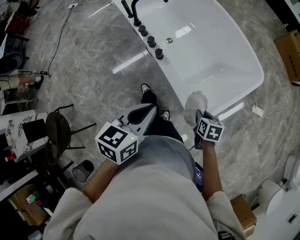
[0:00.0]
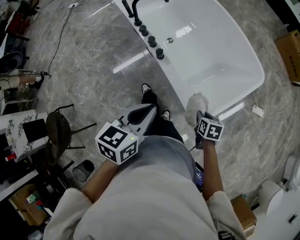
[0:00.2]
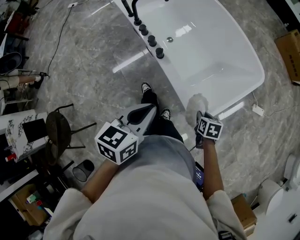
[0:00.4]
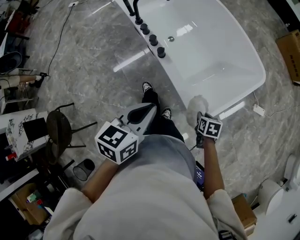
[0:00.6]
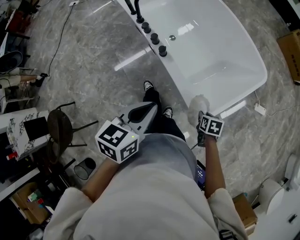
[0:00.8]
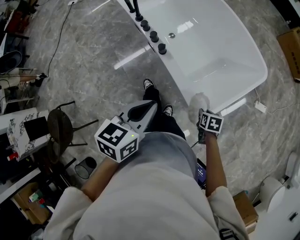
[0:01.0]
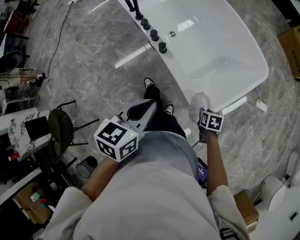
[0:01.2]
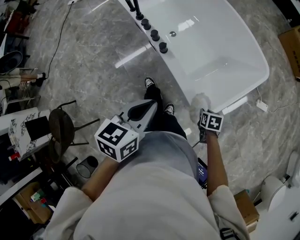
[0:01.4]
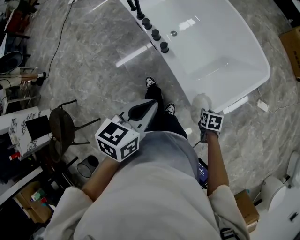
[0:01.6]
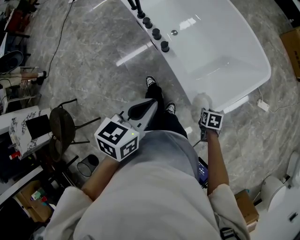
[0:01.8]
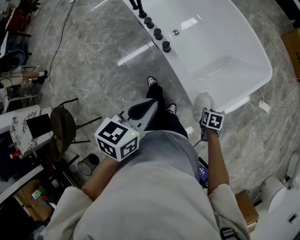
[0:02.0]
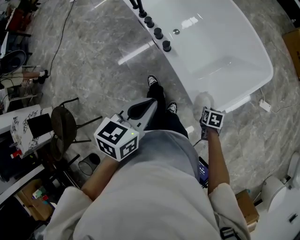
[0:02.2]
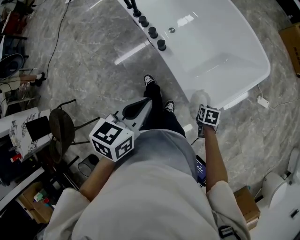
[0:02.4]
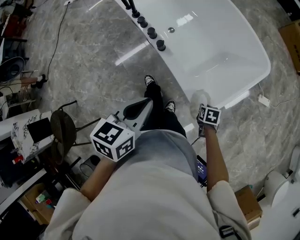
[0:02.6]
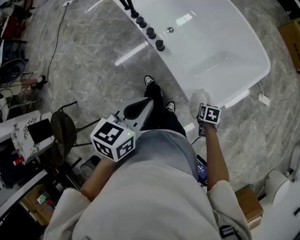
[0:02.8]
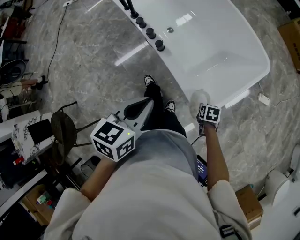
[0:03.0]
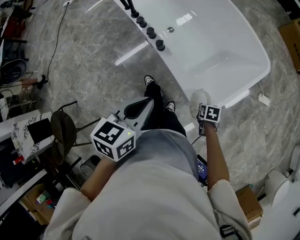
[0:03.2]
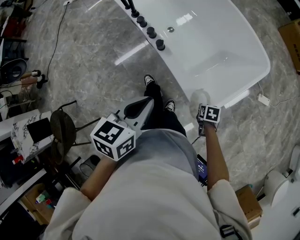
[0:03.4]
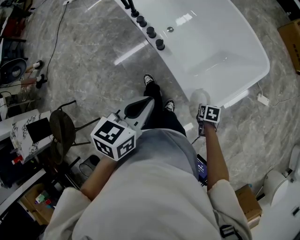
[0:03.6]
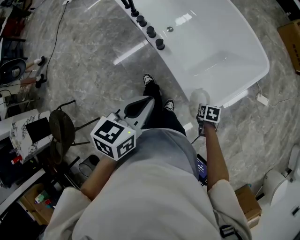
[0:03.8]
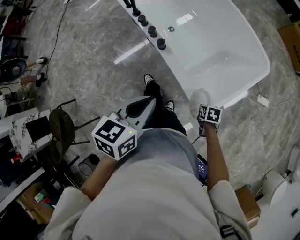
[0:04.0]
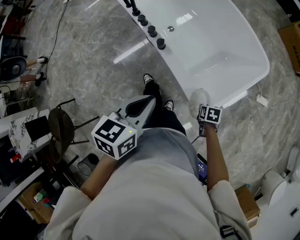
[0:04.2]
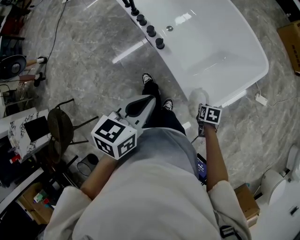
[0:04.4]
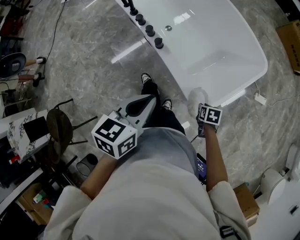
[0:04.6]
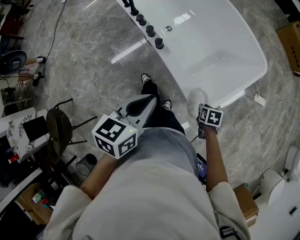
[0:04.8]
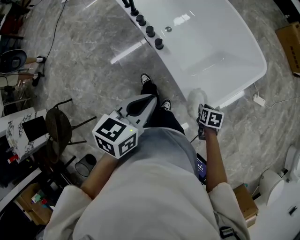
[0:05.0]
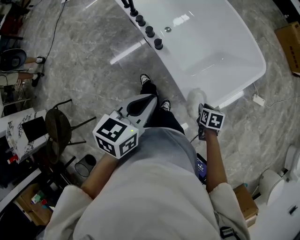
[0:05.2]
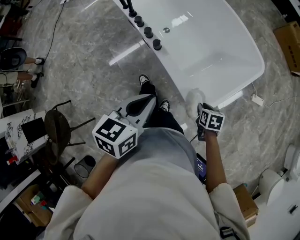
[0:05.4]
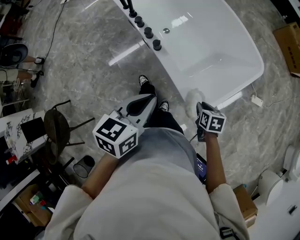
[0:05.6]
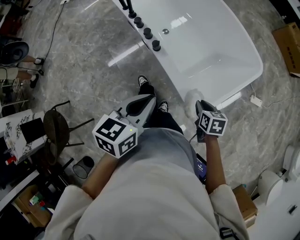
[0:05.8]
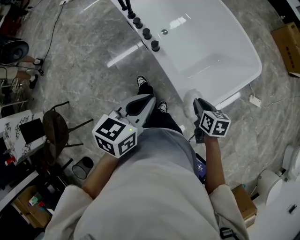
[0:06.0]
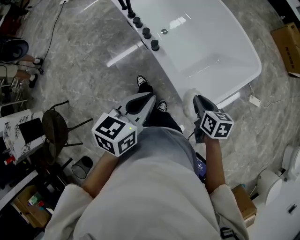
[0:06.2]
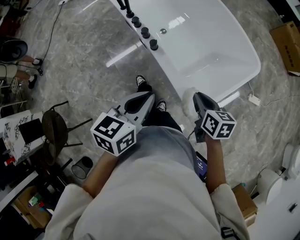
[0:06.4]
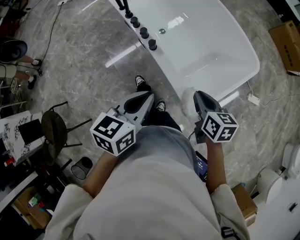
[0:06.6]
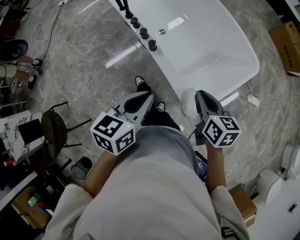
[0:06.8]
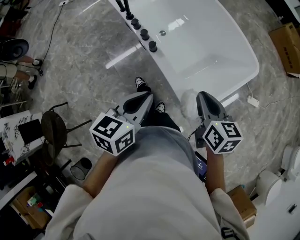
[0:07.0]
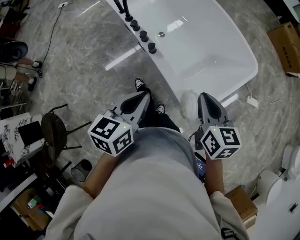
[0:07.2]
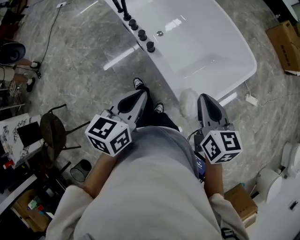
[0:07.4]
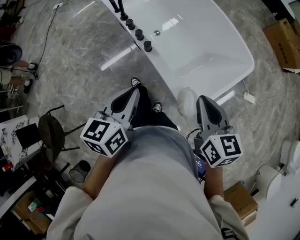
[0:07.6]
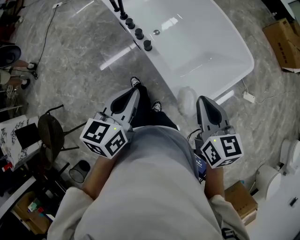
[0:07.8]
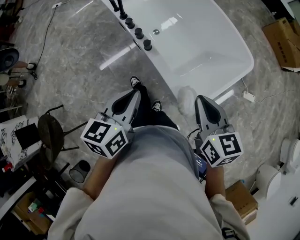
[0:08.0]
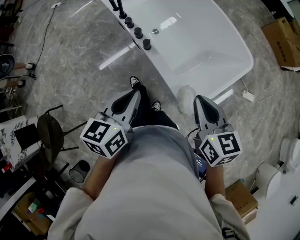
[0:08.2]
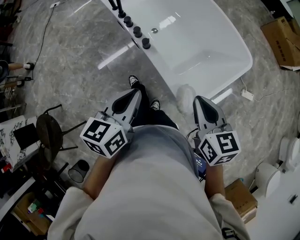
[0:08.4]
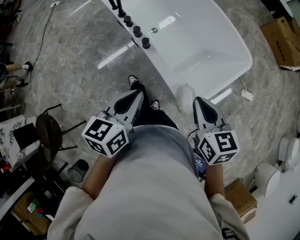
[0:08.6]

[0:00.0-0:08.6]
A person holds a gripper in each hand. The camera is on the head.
0:00.0 to 0:01.4: The right gripper moves downward, some 10 cm.
0:01.4 to 0:04.4: The grippers move only a little.
0:04.4 to 0:05.8: The right gripper goes some 10 cm upward.
0:05.8 to 0:07.2: The right gripper is displaced upward by roughly 20 cm, and changes its angle by about 30 degrees.
0:07.2 to 0:08.6: The grippers move only a little.

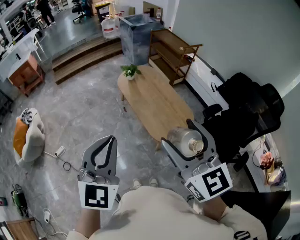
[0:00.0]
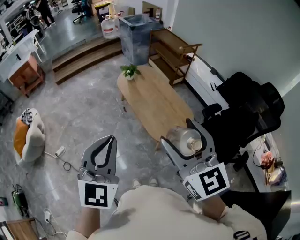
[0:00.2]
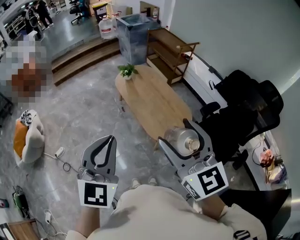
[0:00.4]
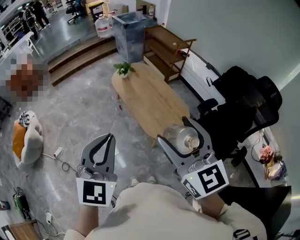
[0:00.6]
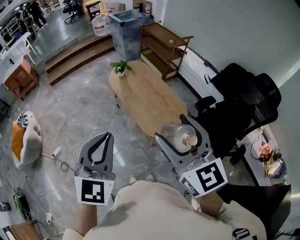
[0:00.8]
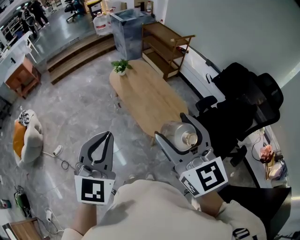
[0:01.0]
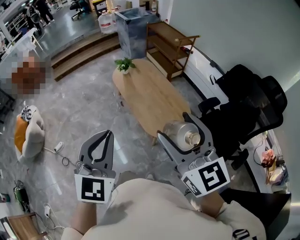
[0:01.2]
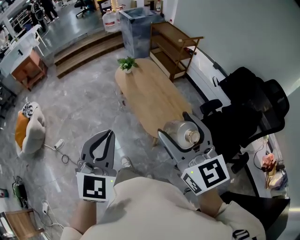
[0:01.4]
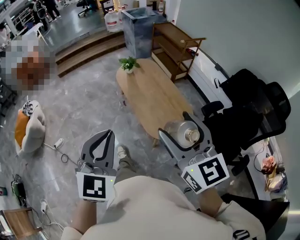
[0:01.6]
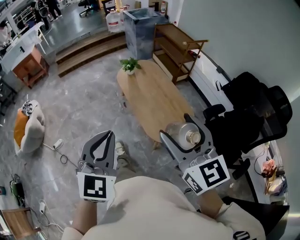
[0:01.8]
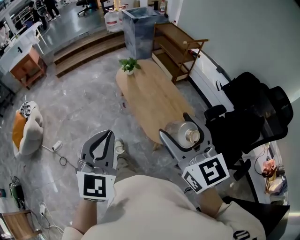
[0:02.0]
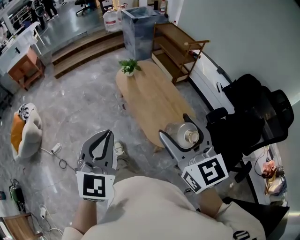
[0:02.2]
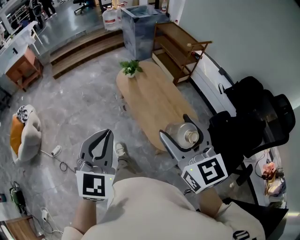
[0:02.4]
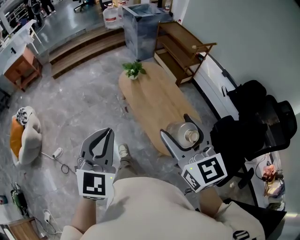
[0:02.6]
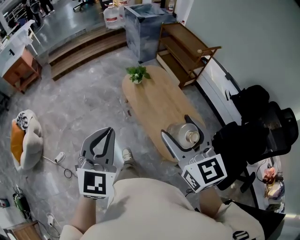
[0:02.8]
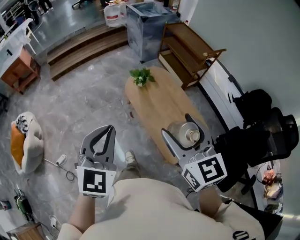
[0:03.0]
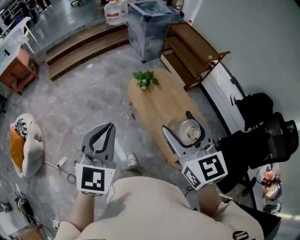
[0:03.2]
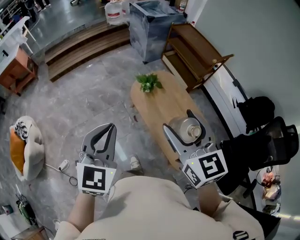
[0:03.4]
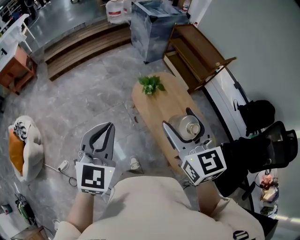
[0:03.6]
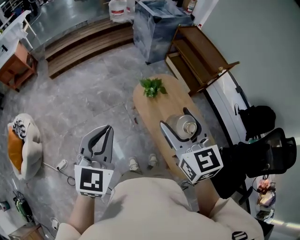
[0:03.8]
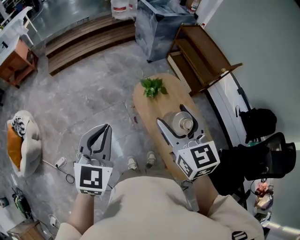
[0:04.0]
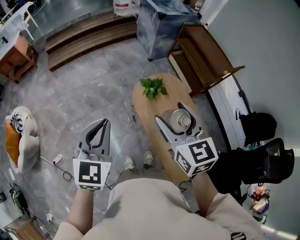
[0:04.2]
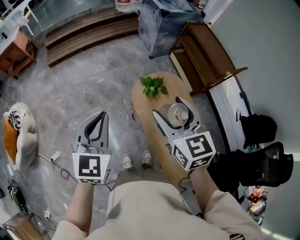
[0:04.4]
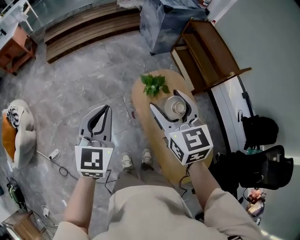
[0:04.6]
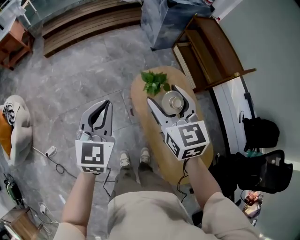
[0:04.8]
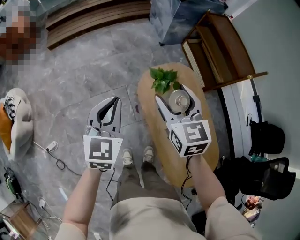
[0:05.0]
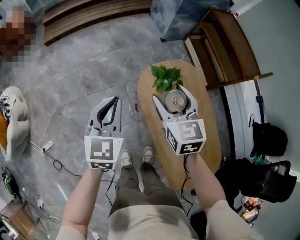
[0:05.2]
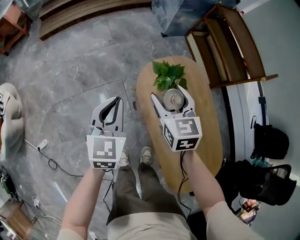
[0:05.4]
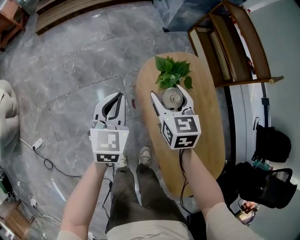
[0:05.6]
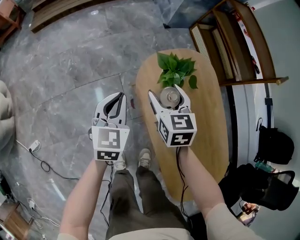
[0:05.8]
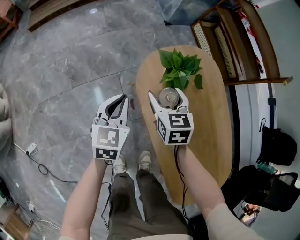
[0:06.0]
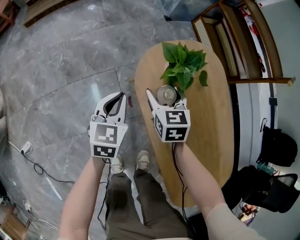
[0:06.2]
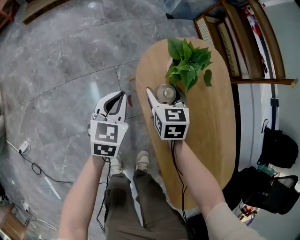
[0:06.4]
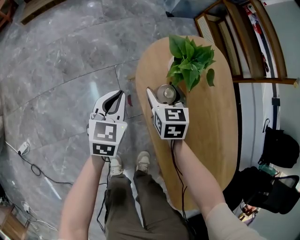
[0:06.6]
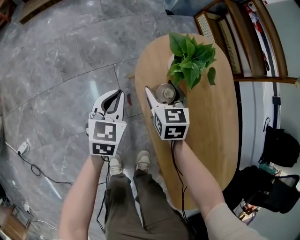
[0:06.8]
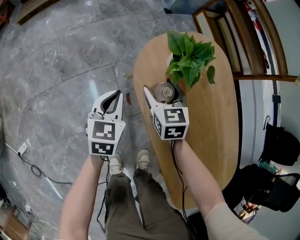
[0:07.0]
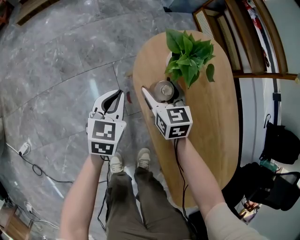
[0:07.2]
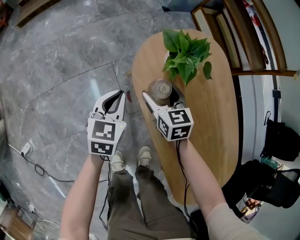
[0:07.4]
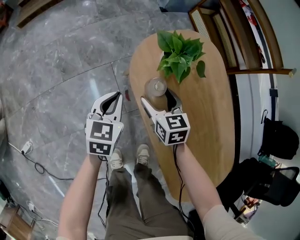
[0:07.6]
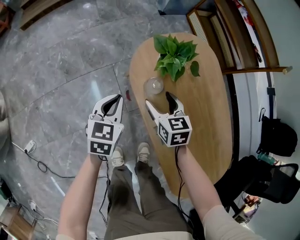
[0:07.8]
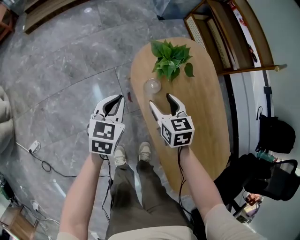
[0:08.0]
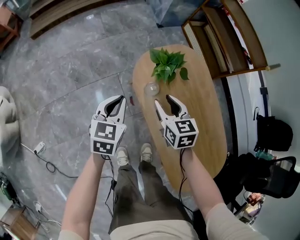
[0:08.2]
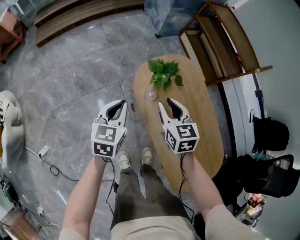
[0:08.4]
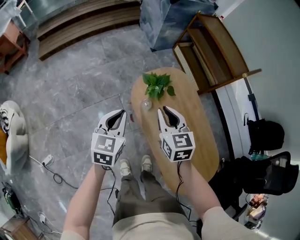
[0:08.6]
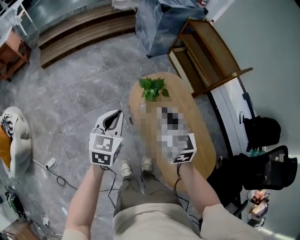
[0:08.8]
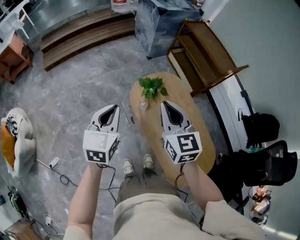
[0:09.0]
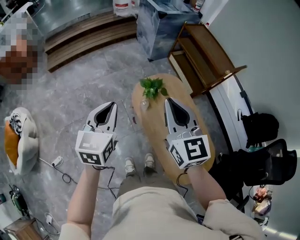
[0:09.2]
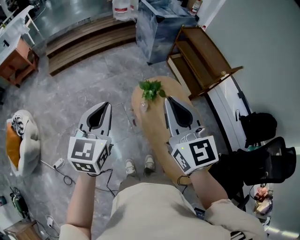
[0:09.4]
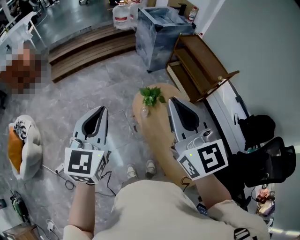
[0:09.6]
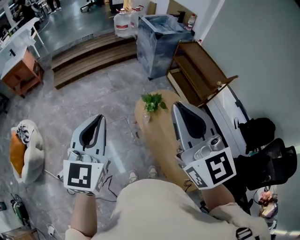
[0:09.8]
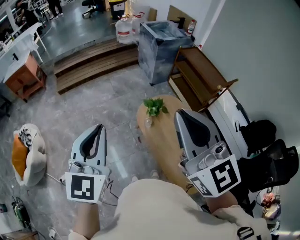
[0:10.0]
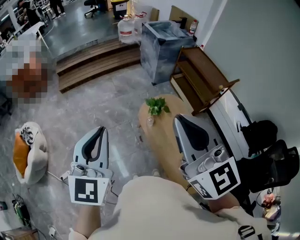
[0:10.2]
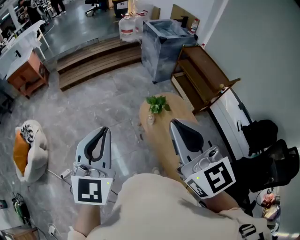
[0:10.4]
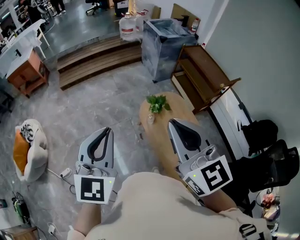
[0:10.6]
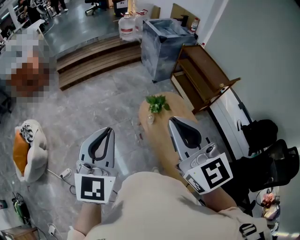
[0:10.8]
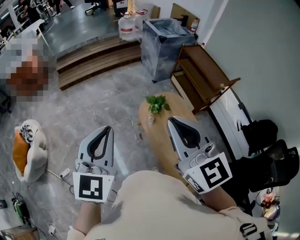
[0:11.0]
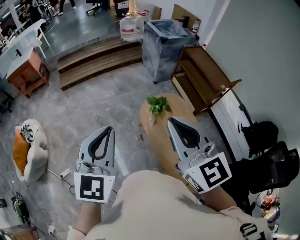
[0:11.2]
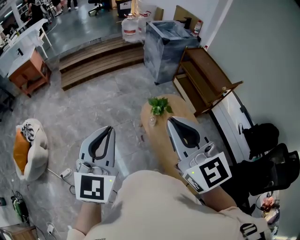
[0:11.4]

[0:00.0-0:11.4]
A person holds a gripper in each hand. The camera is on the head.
0:00.0 to 0:01.4: Both grippers move to the right, approximately 10 cm.
0:01.4 to 0:02.8: Both grippers travel together forward and to the left, approximately 30 cm.
0:02.8 to 0:04.2: The right gripper is displaced forward by roughly 35 cm; the left gripper is displaced forward and to the left by some 35 cm.
0:04.2 to 0:05.6: The two grippers go roughly 50 cm downward and forward.
0:05.6 to 0:07.2: Both grippers move downward, approximately 25 cm.
0:07.2 to 0:08.6: The grippers both shift upward by roughly 35 cm. The right gripper closes up.
0:08.6 to 0:10.0: The grippers both shift upward and backward by some 50 cm. The left gripper changes its angle by roughly 30 degrees, while the right gripper angles its fingers upward, by about 30 degrees.
0:10.0 to 0:11.4: The right gripper travels downward by approximately 5 cm.

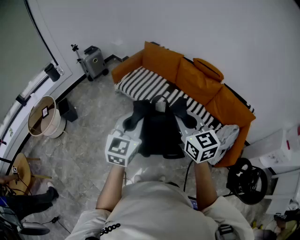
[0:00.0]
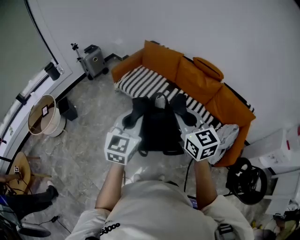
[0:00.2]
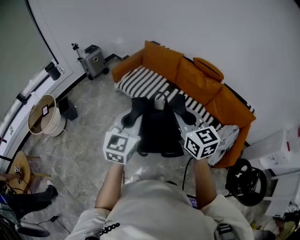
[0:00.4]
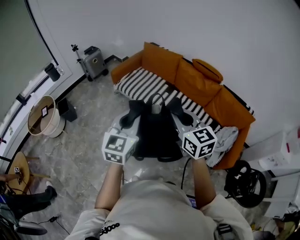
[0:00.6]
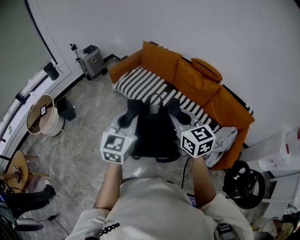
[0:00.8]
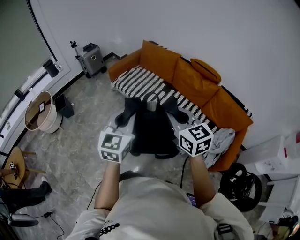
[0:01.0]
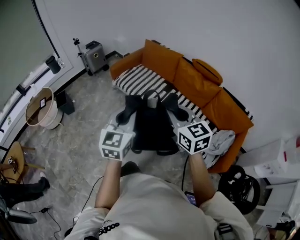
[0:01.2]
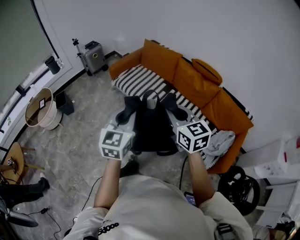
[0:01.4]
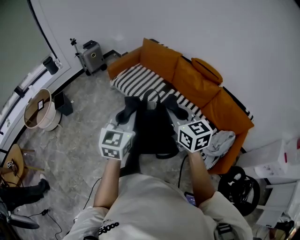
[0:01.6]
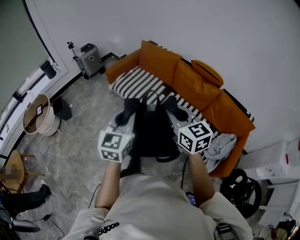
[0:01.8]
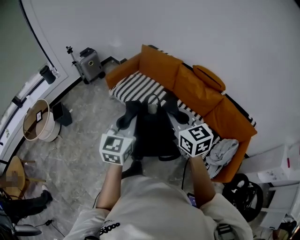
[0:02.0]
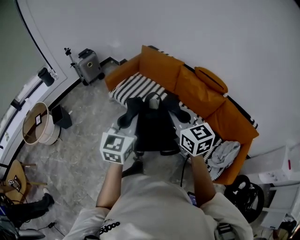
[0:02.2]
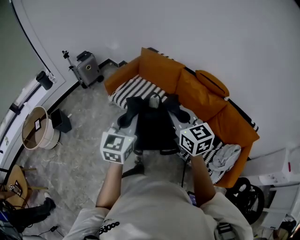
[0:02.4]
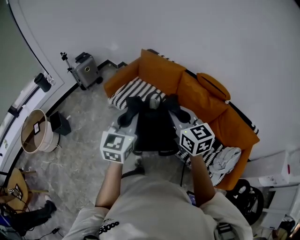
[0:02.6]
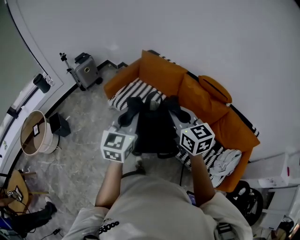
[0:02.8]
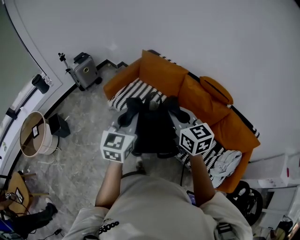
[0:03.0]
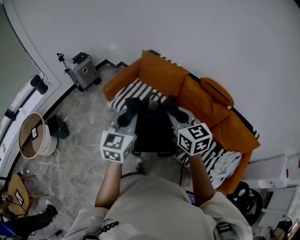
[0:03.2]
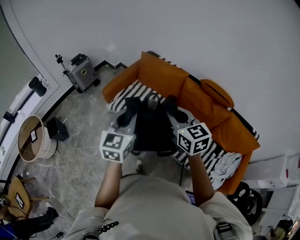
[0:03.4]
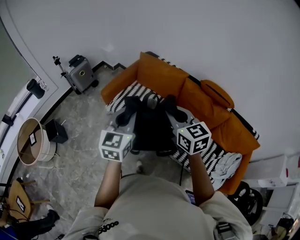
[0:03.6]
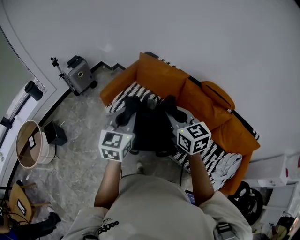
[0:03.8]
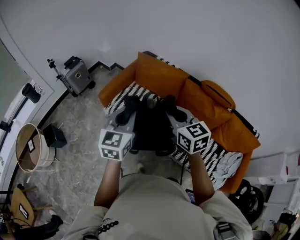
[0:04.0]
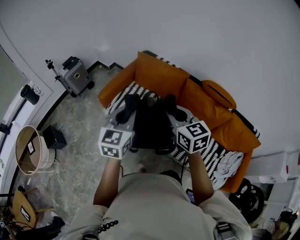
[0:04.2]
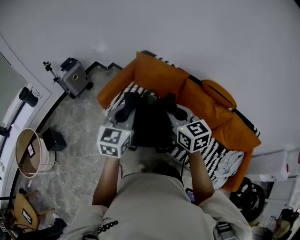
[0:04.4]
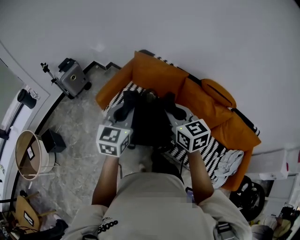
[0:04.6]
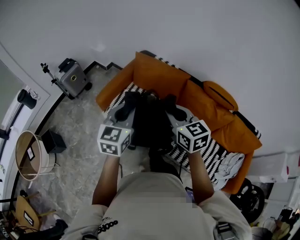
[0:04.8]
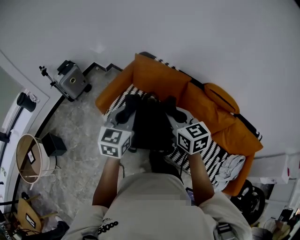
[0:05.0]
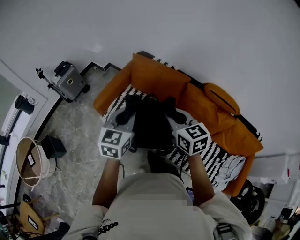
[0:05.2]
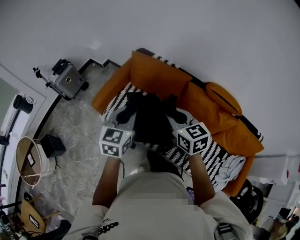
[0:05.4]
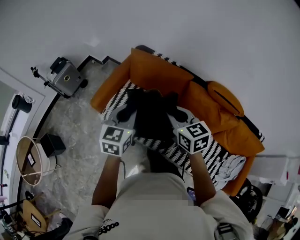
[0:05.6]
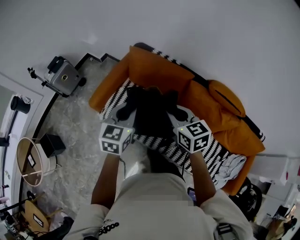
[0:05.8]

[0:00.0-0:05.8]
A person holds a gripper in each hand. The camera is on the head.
0:00.0 to 0:01.4: The two grippers go some 5 cm to the right.
0:01.4 to 0:02.8: Both grippers travel together forward, roughly 30 cm.
0:02.8 to 0:04.4: Both grippers move forward, some 20 cm.
0:04.4 to 0:05.8: Both grippers move forward and downward, approximately 20 cm.
